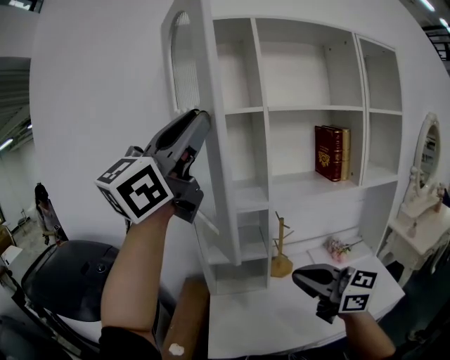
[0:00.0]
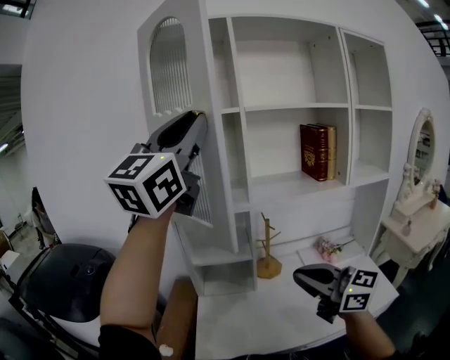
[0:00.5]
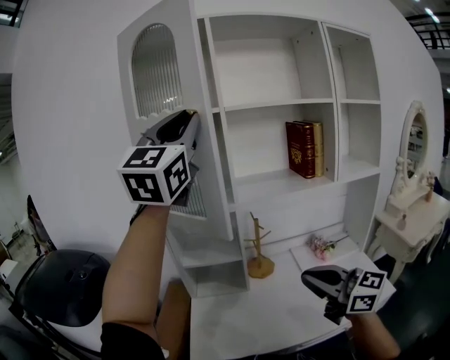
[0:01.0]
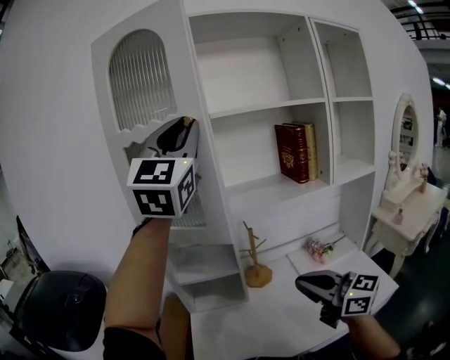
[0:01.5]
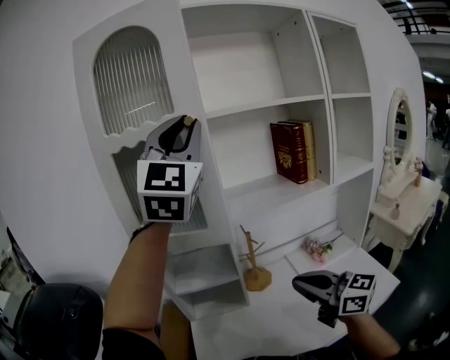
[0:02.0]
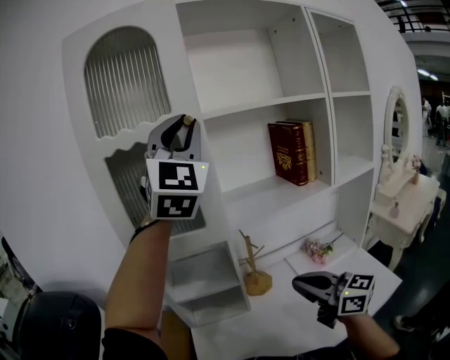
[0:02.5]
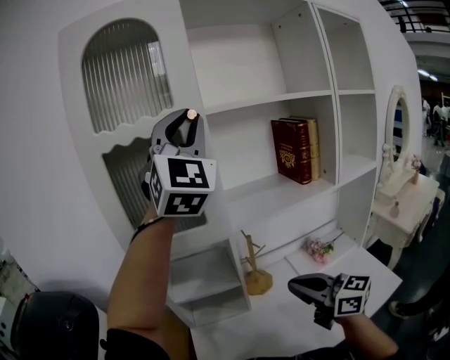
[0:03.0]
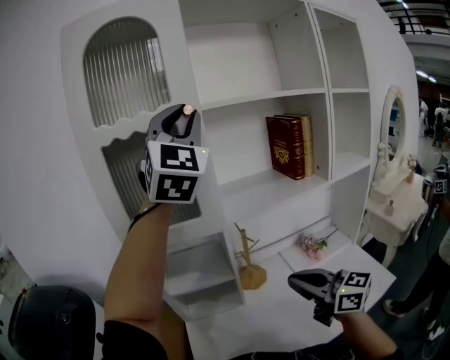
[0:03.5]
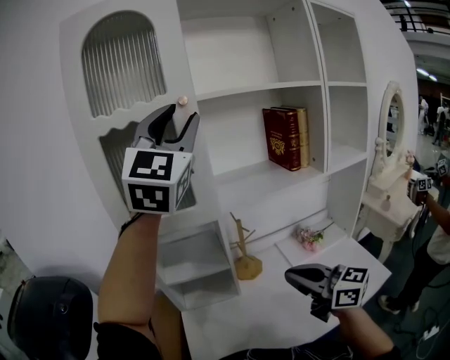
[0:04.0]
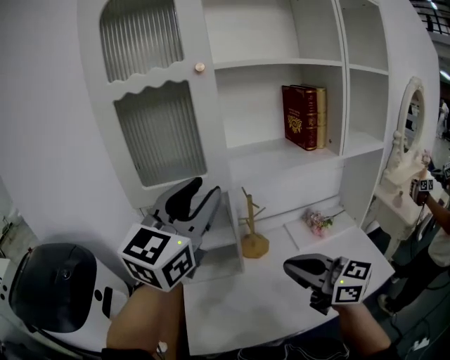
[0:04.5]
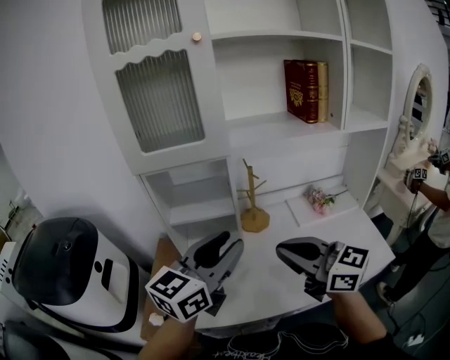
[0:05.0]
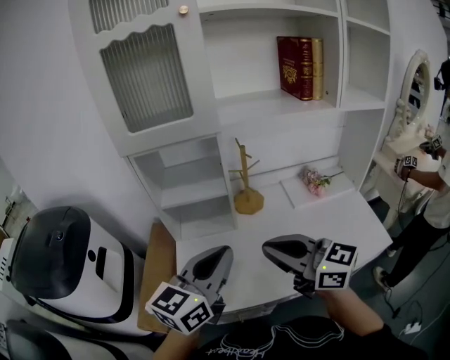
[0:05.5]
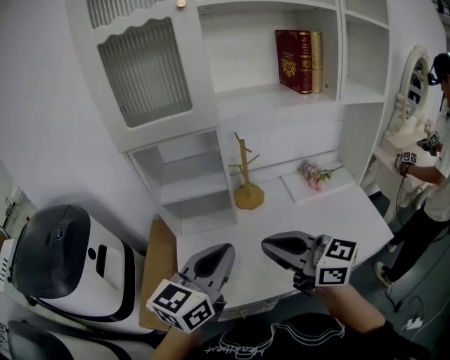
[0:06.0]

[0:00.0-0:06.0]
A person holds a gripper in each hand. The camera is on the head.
0:00.0 to 0:02.0: The right gripper moves to the right and forward, about 10 cm. Meanwhile the left gripper goes roughly 20 cm to the right and forward, and rotates roughly 40 degrees.
0:02.0 to 0:04.0: The grippers stay close to where they were, moving slightly.
0:04.0 to 0:06.0: The right gripper moves backward, to the left and downward, about 10 cm, while the left gripper is displaced downward and backward by approximately 50 cm, rolls counterclockwise, seen from behind, by roughly 50 degrees, and closes its fingers.

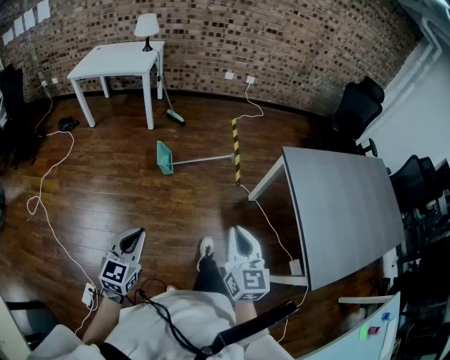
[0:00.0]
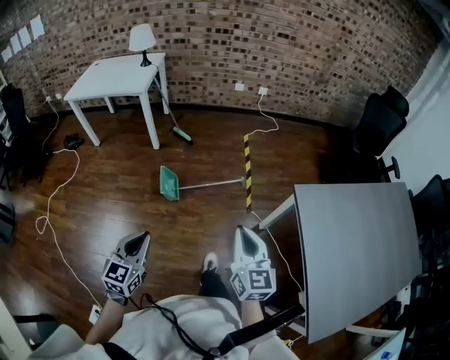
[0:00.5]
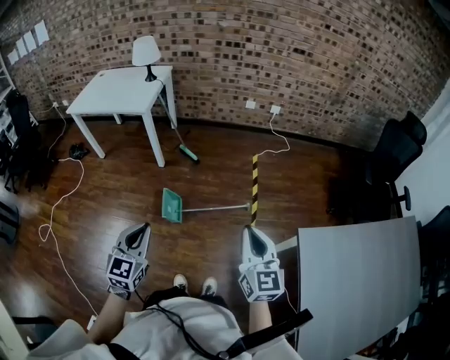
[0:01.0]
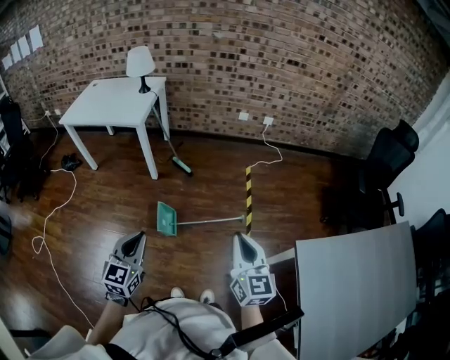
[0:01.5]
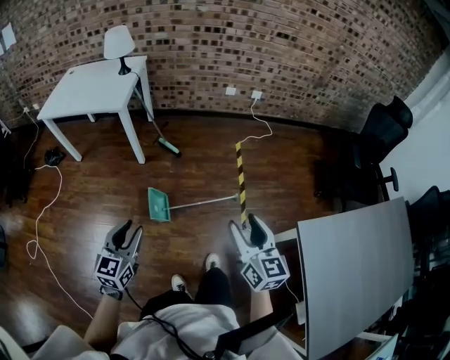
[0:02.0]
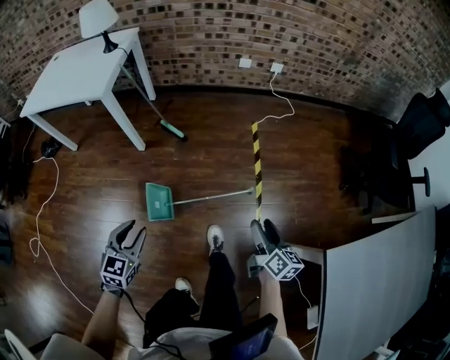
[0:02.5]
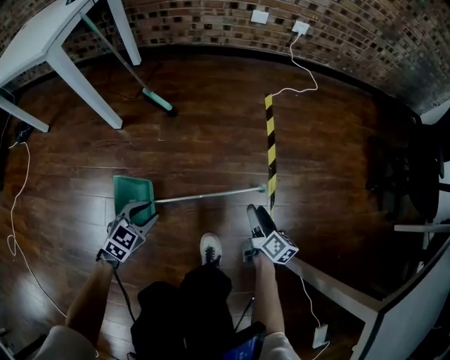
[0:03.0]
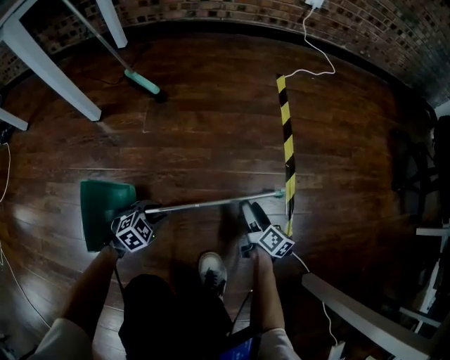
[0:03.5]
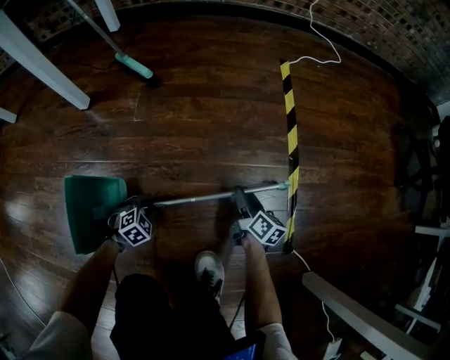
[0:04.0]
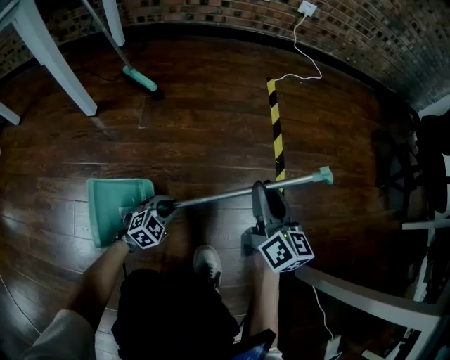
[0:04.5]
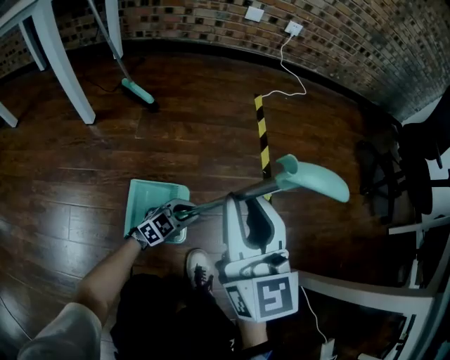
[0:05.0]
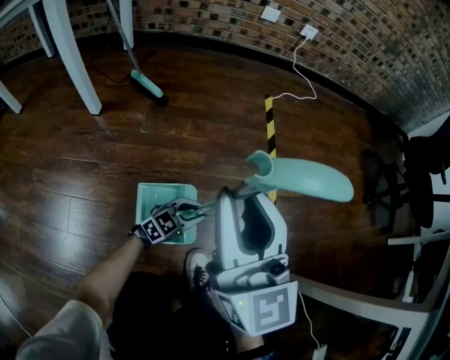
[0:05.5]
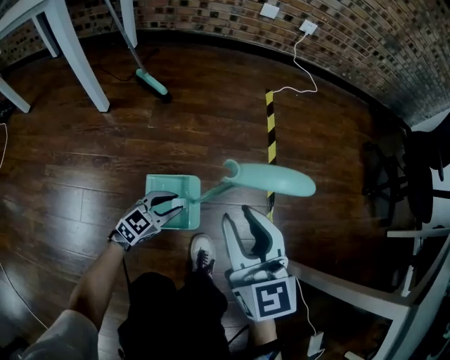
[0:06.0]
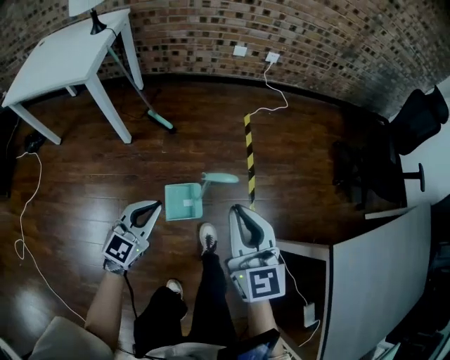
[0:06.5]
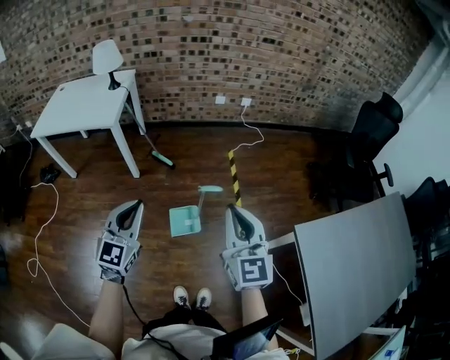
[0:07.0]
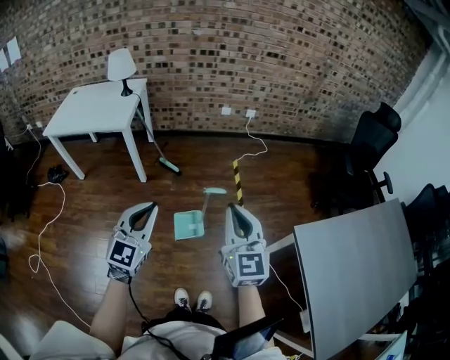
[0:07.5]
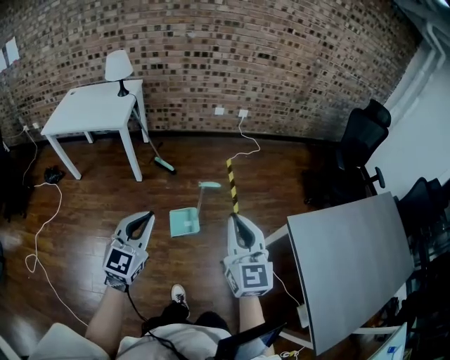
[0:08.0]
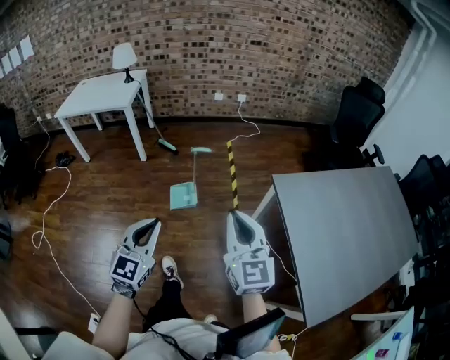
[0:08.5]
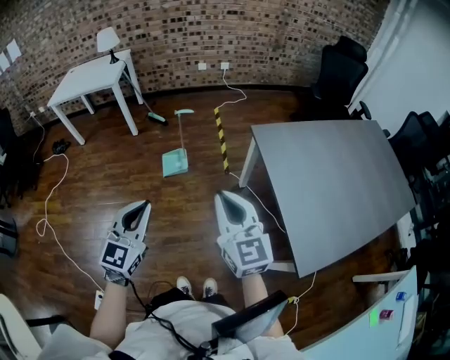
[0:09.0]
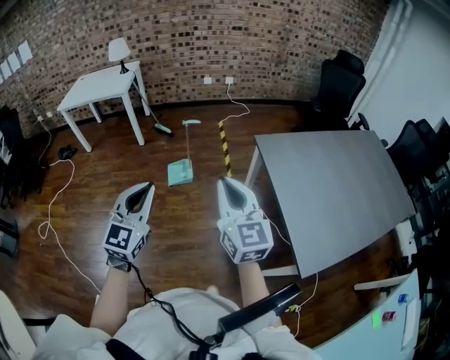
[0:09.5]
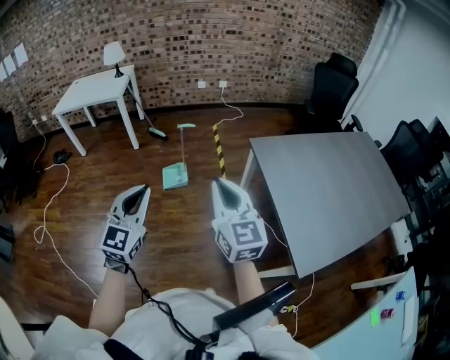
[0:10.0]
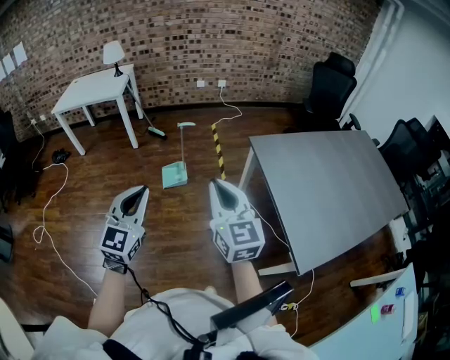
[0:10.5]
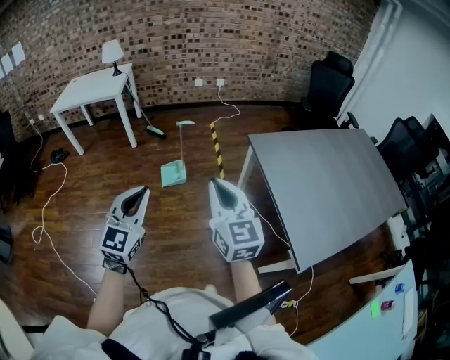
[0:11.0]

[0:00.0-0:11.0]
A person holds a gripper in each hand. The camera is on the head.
0:00.0 to 0:02.0: Both grippers are carried forward, roughly 50 cm. The left gripper opens, while the right gripper opens its fingers.
0:02.0 to 0:03.5: Both grippers move downward, roughly 90 cm. The left gripper points its fingers about 40 degrees further downward; the right gripper twists some 40 degrees clockwise, seen from behind.
0:03.5 to 0:05.5: The left gripper is displaced to the right and upward by roughly 15 cm, and tilts its fingers about 40 degrees upward. Meanwhile the right gripper goes about 50 cm upward, rotates around the line of its fingers by about 60 degrees, counterclockwise from behind, and closes up.
0:05.5 to 0:07.5: The left gripper shifts some 90 cm upward, and turns by roughly 50 degrees; the right gripper heads upward and backward, covering approximately 60 cm.
0:07.5 to 0:09.0: The two grippers travel together, backward and to the right, approximately 50 cm.
0:09.0 to 0:11.0: The right gripper moves roughly 5 cm. Meanwhile the left gripper ends up approximately 5 cm from where it was.

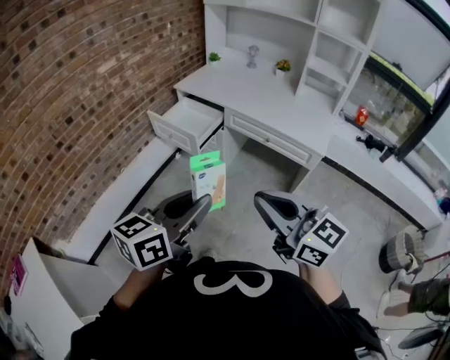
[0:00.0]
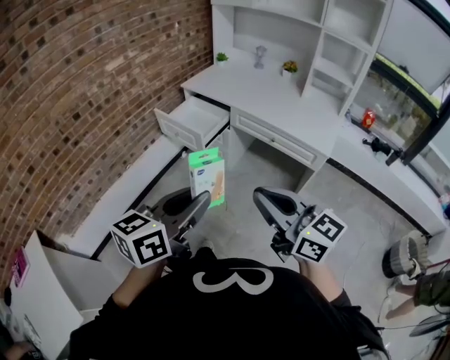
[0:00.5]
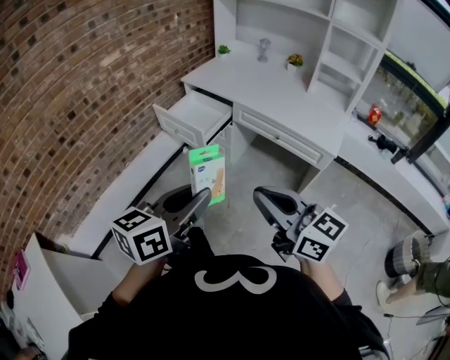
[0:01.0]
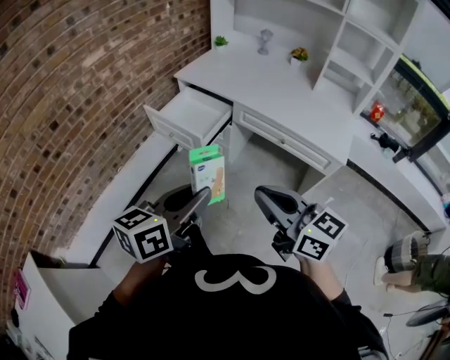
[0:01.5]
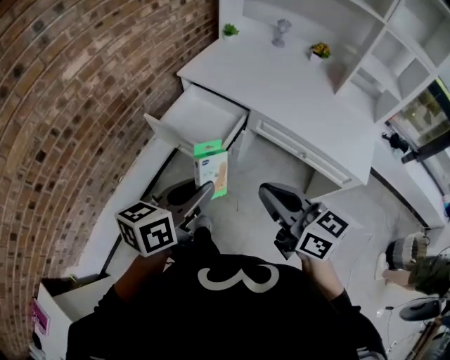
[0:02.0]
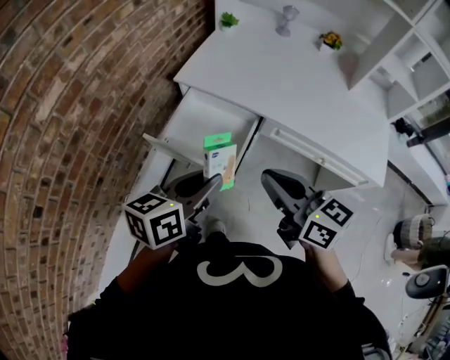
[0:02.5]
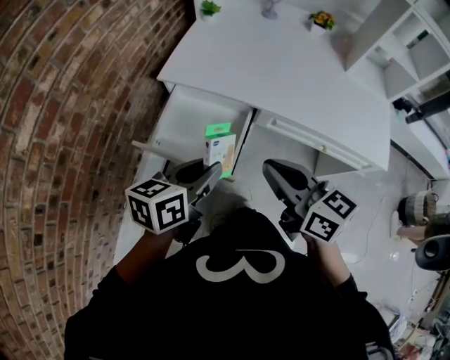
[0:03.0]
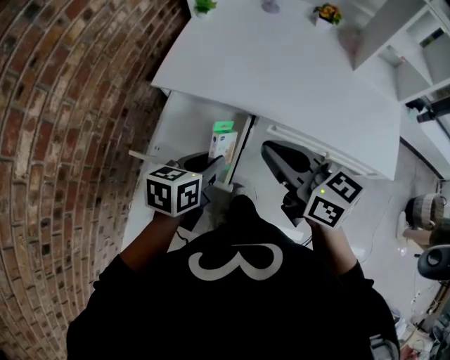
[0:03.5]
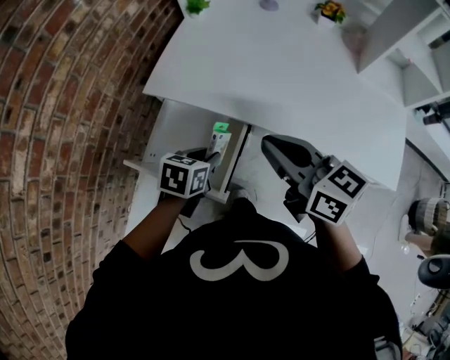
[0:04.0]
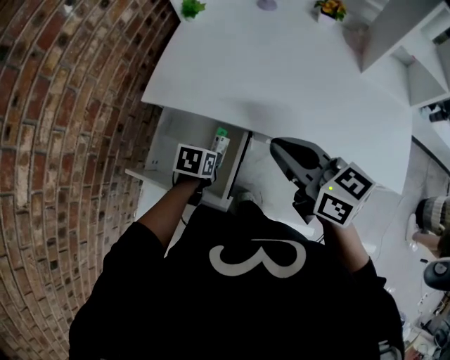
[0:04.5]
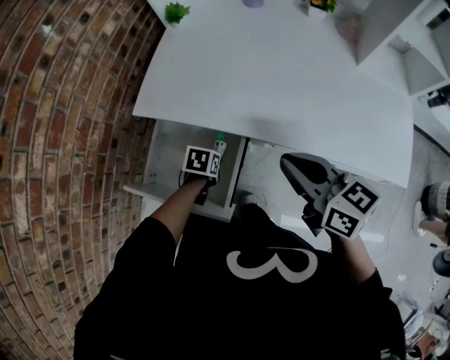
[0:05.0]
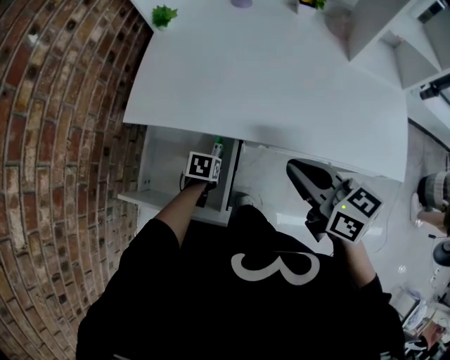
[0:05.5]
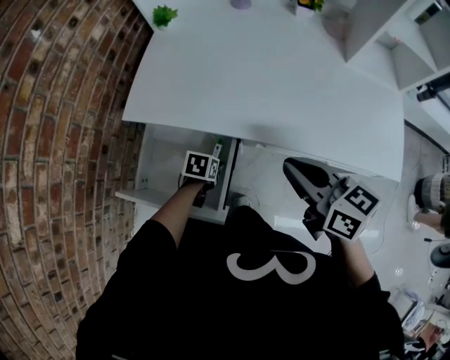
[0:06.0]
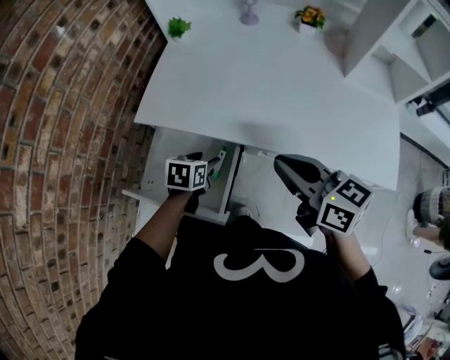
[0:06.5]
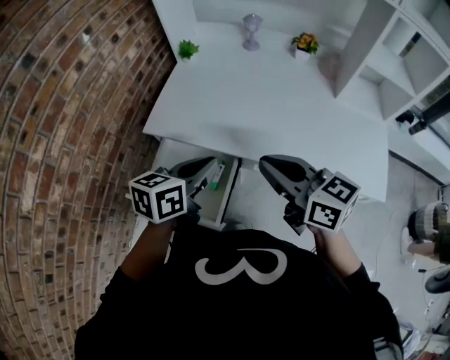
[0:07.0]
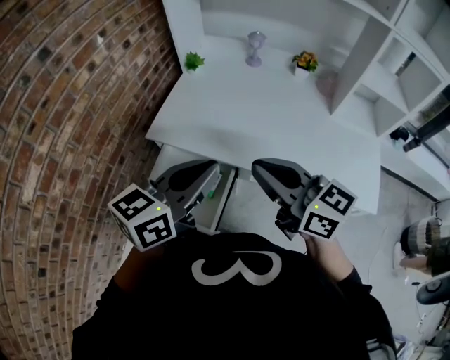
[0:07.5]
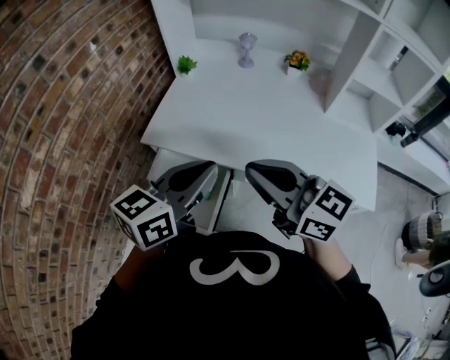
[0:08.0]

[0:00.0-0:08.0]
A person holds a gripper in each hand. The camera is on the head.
0:00.0 to 0:02.0: The grippers both shift forward by approximately 30 cm.
0:02.0 to 0:04.0: The left gripper moves forward and backward over approximately 35 cm, changing direction 2 times, and tips its fingers downward by approximately 40 degrees, while the right gripper moves forward and backward over some 35 cm, changing direction 2 times.
0:04.0 to 0:06.0: The right gripper heads to the right and downward, covering about 10 cm. The left gripper is displaced downward by approximately 20 cm, and opens up.
0:06.0 to 0:08.0: The right gripper is displaced upward by some 15 cm, and turns by approximately 30 degrees. Meanwhile the left gripper shifts approximately 40 cm upward, tilts its fingers about 60 degrees upward, and closes up.

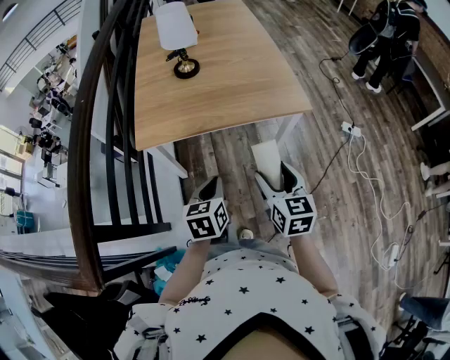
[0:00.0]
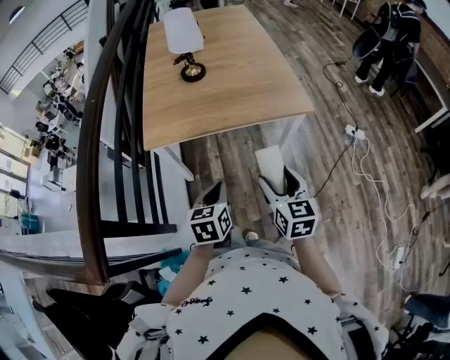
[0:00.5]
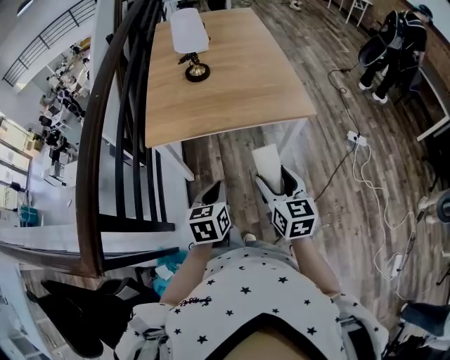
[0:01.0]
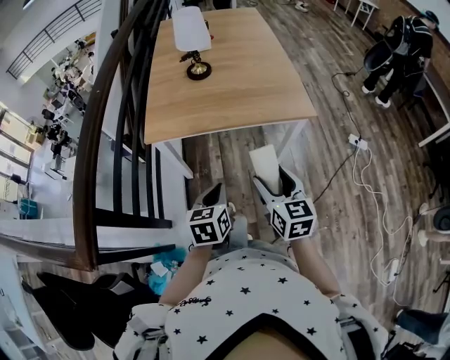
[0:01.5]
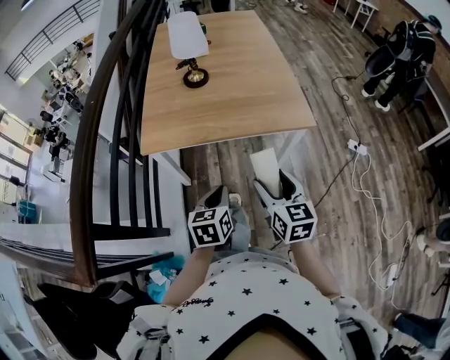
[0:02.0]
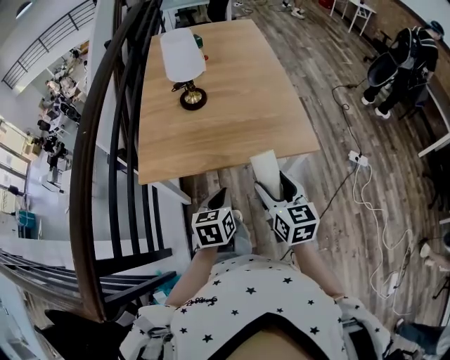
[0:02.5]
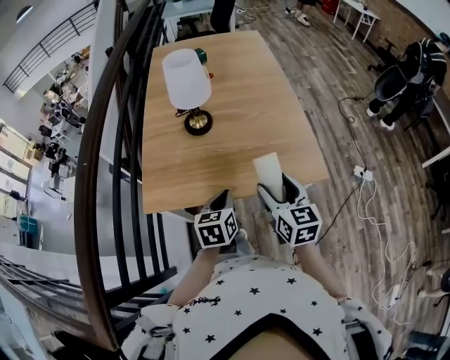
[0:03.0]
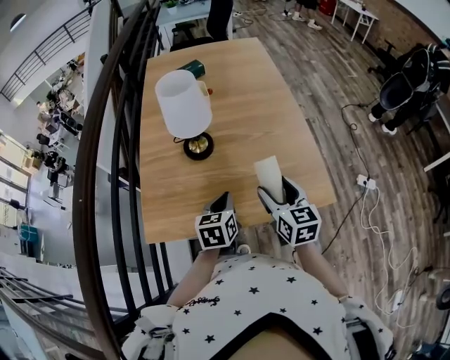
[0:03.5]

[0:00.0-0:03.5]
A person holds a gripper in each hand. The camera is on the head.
0:00.0 to 0:02.0: The grippers stay close to where they were, moving slightly.
0:02.0 to 0:03.5: Both grippers travel together forward, about 35 cm.
